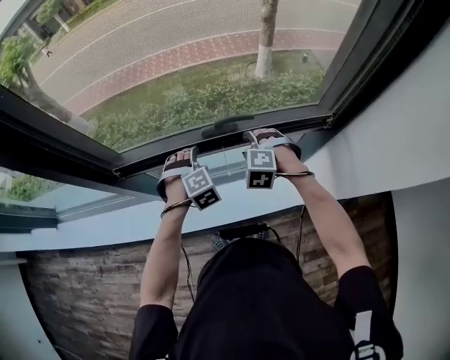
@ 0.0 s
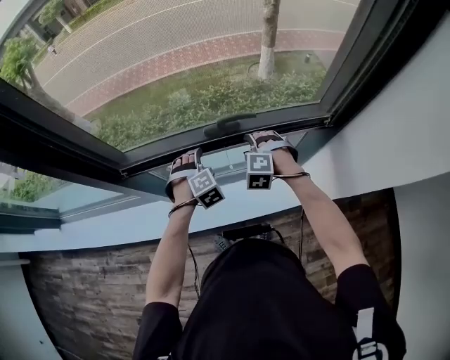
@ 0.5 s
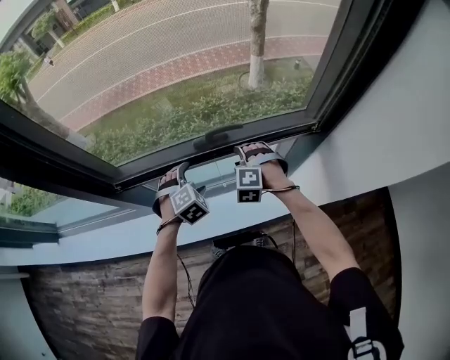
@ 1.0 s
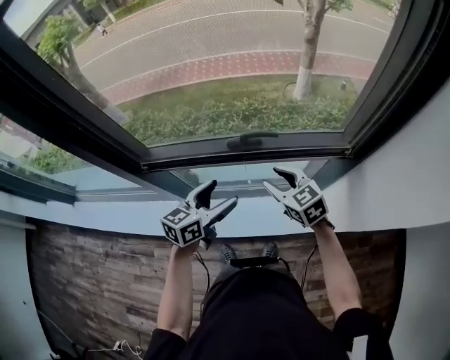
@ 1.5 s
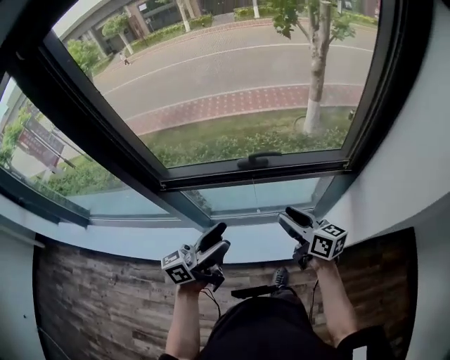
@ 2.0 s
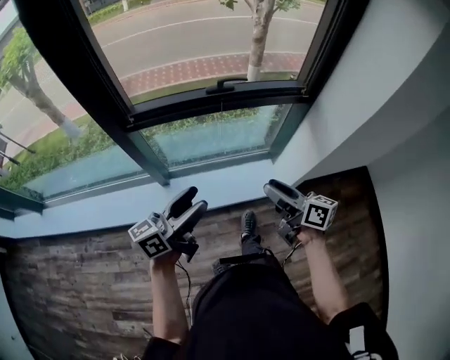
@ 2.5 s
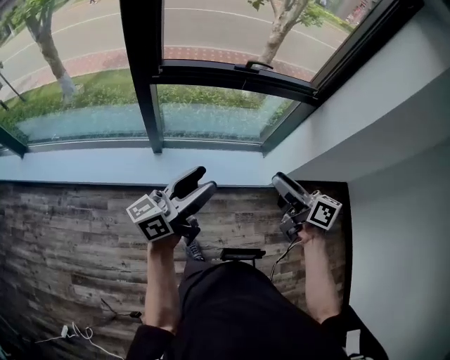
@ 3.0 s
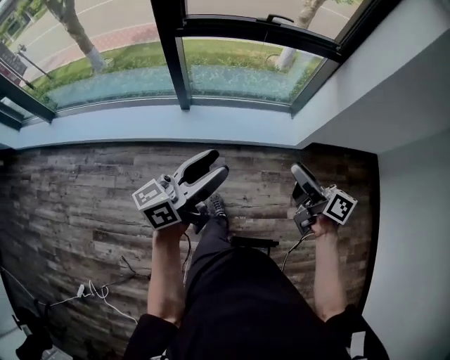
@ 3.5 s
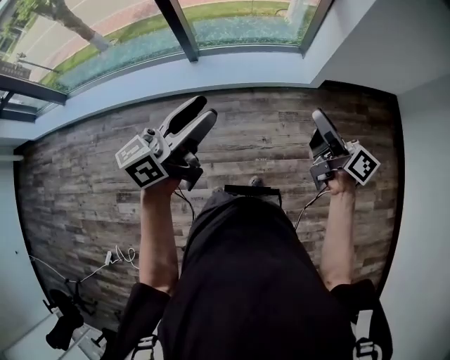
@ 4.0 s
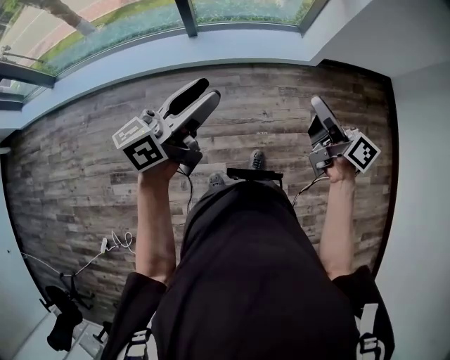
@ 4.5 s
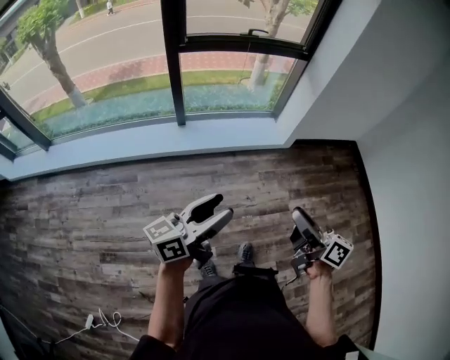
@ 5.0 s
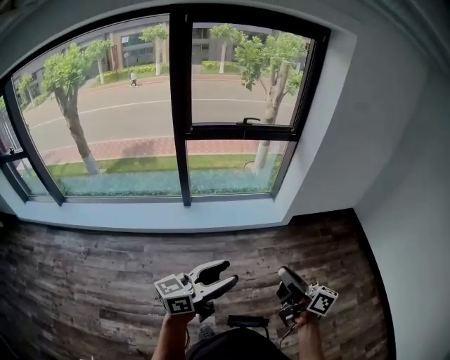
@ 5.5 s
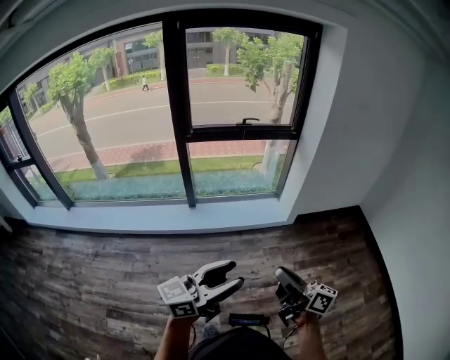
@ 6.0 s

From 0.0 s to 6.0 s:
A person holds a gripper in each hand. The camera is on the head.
From 0.0 s to 2.0 s: The right gripper moves backward and upward, roughly 15 cm, and rotates around the line of its fingers by some 80 degrees, clockwise from behind. Meanwhile the left gripper is displaced backward and upward by about 25 cm, and angles its fingers upward, by about 70 degrees.
From 2.0 s to 4.0 s: Both grippers are carried backward, some 50 cm. The right gripper changes its angle by some 20 degrees.
From 4.0 s to 6.0 s: Both grippers move backward, roughly 20 cm. The right gripper closes its fingers.

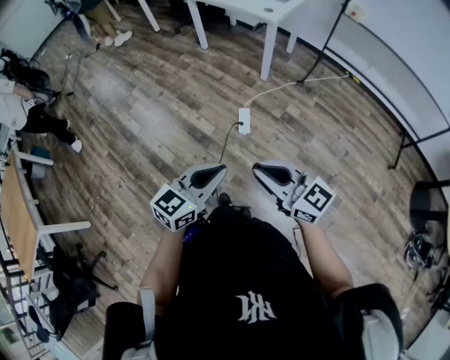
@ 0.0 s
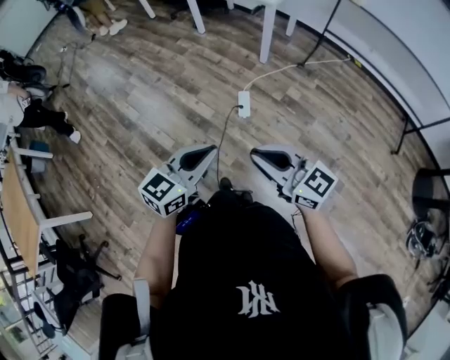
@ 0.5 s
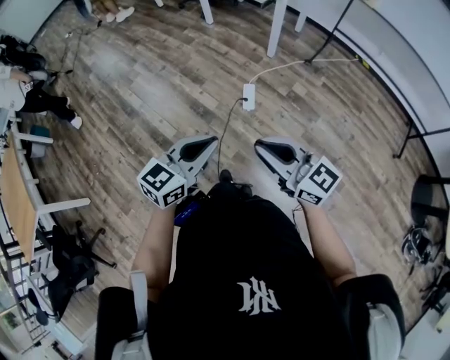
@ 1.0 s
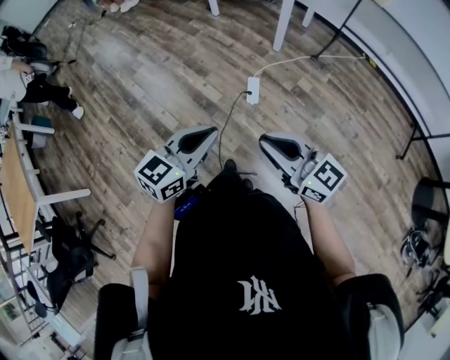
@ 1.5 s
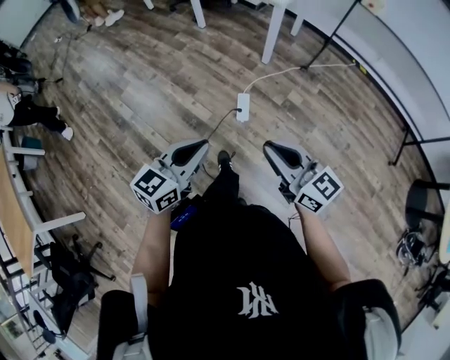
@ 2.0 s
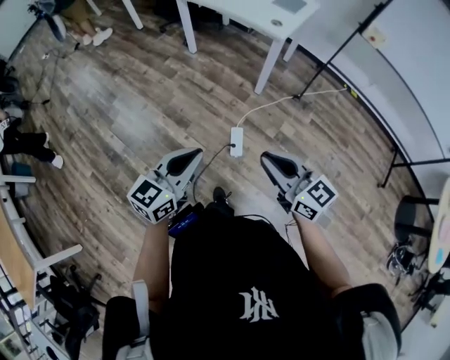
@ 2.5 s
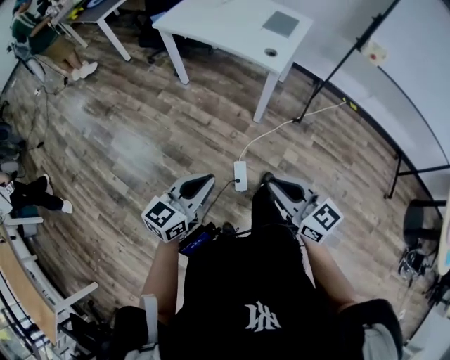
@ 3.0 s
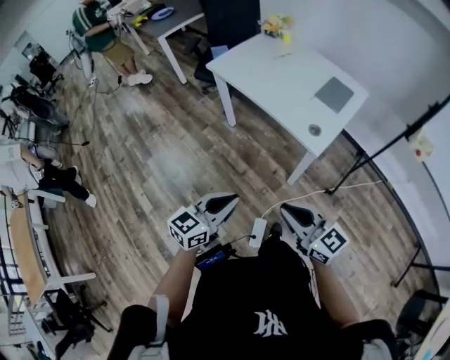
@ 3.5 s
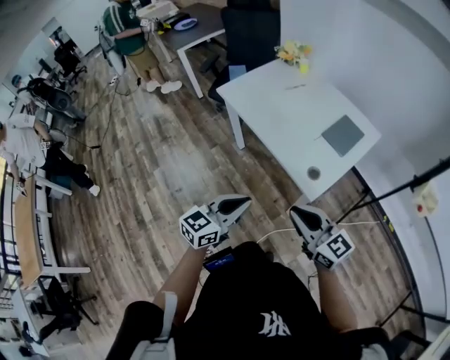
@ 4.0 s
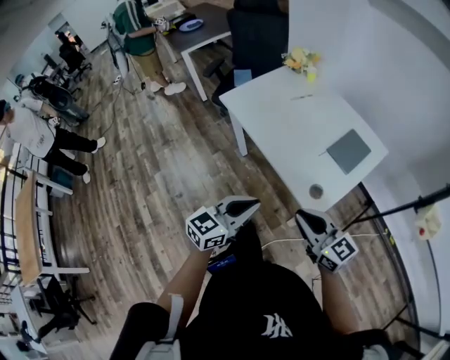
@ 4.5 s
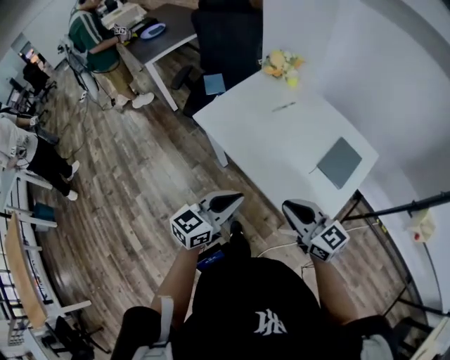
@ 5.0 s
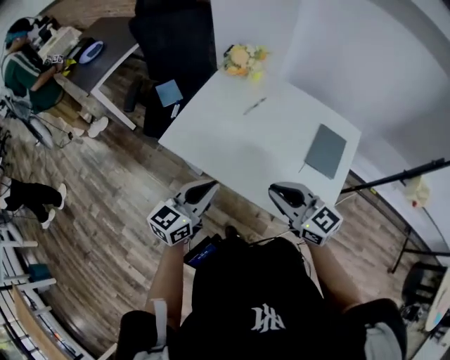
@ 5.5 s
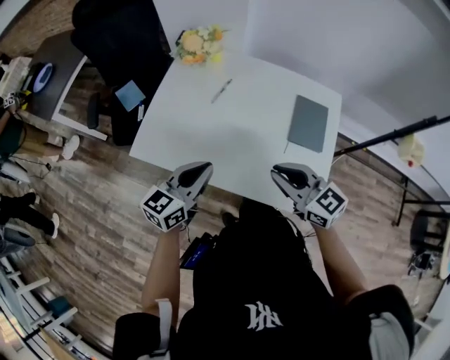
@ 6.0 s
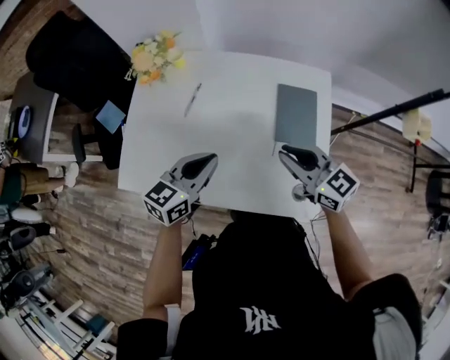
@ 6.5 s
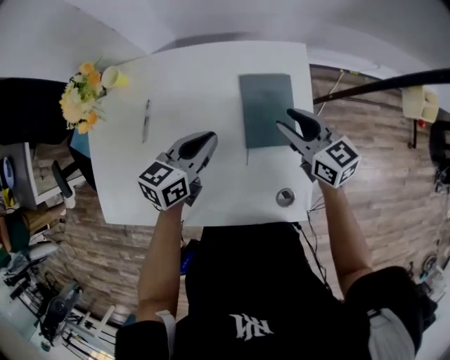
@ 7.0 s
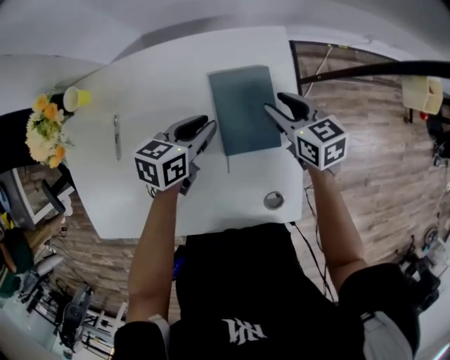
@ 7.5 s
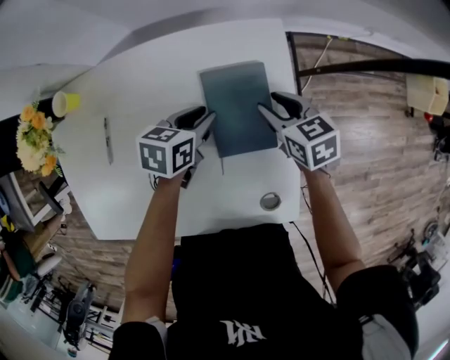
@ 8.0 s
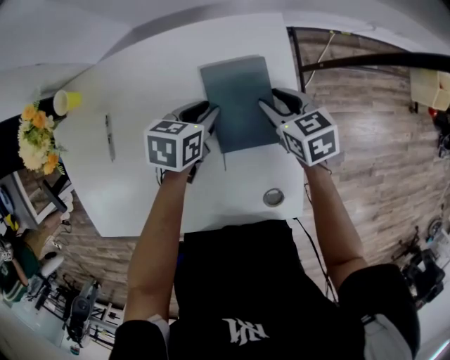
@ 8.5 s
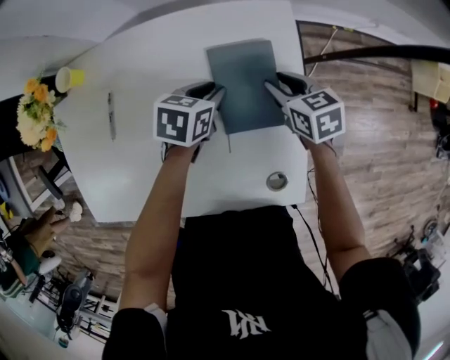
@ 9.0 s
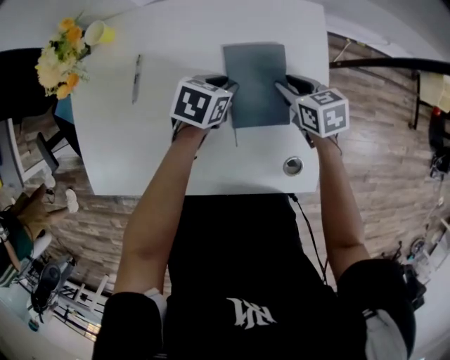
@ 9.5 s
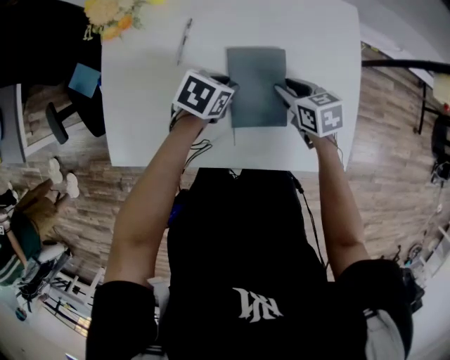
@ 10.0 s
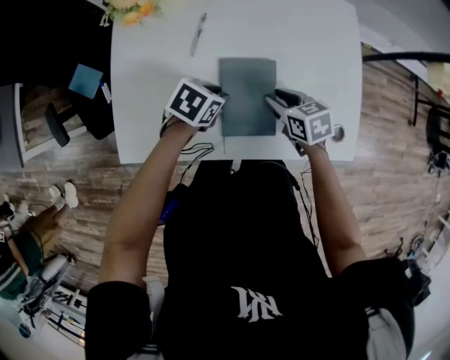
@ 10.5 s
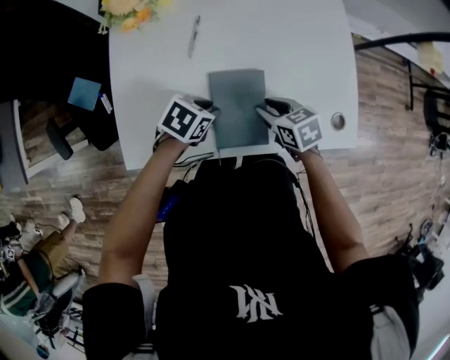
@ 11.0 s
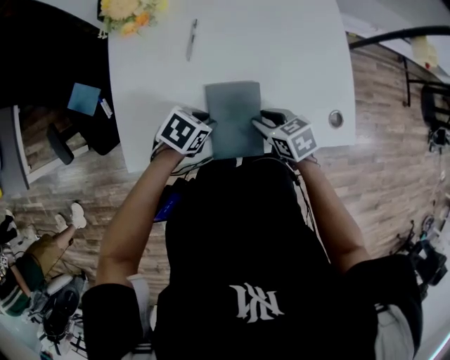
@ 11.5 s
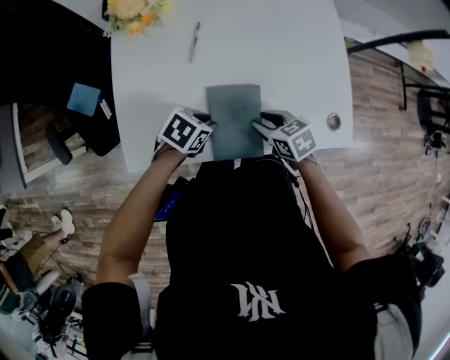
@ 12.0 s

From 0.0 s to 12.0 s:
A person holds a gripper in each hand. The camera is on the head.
From 0.0 s to 2.0 s: The two grippers go some 10 cm forward.
From 2.0 s to 4.0 s: The two grippers travel together, forward, approximately 70 cm.
From 4.0 s to 6.0 s: The right gripper changes place by some 35 cm, and rotates about 30 degrees; the left gripper moves approximately 40 cm, and changes its angle by approximately 20 degrees.
From 6.0 s to 8.0 s: The left gripper shifts by approximately 40 cm, tilts its fingers roughly 40 degrees downward, and opens. The right gripper moves roughly 40 cm, turns by about 50 degrees, and opens.
From 8.0 s to 10.0 s: The right gripper moves to the left and backward, roughly 20 cm, while the left gripper is displaced backward and to the left by about 20 cm.
From 10.0 s to 12.0 s: The left gripper changes place by about 15 cm; the right gripper shifts by about 20 cm.

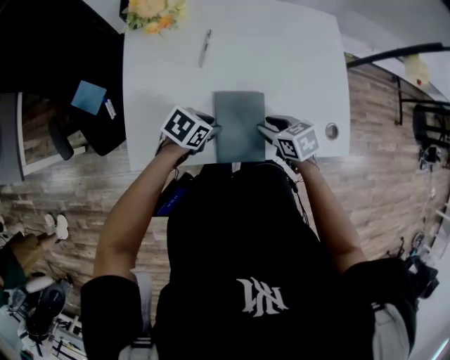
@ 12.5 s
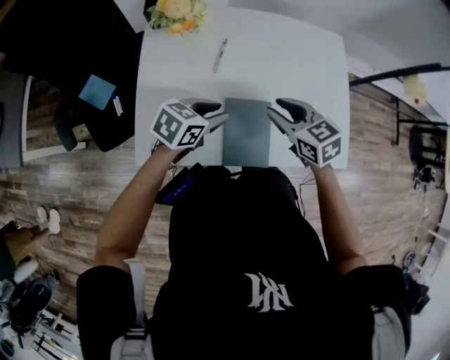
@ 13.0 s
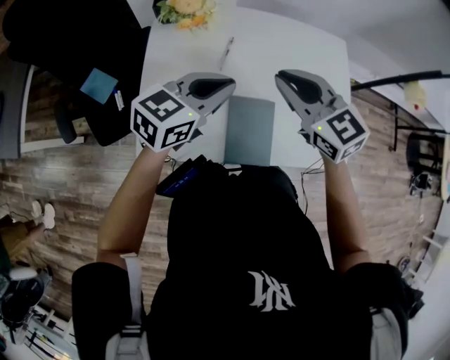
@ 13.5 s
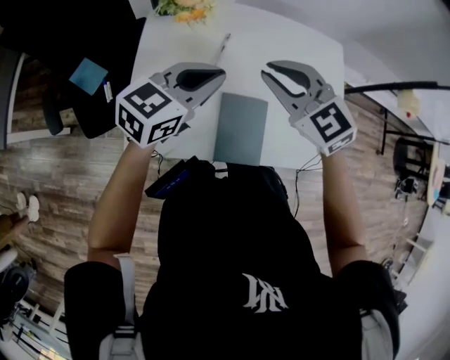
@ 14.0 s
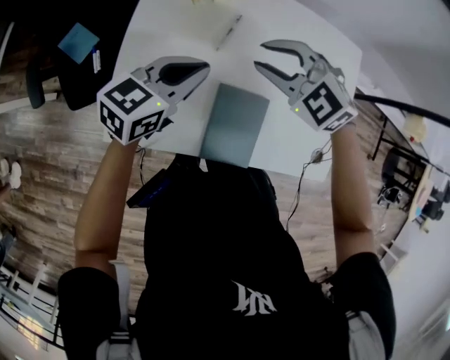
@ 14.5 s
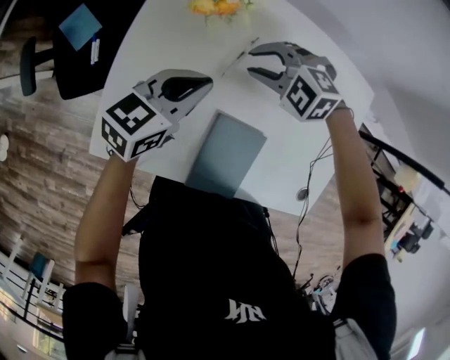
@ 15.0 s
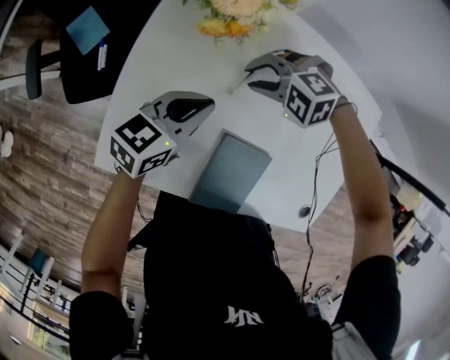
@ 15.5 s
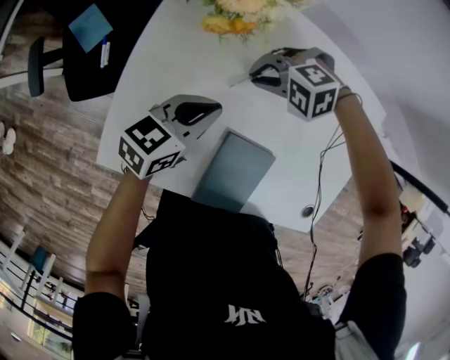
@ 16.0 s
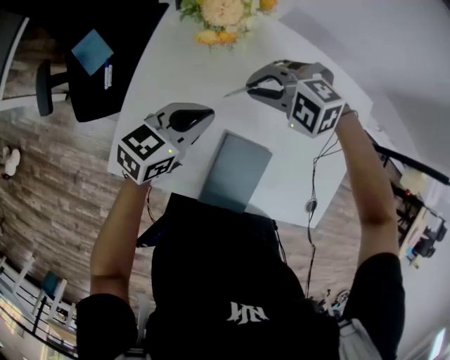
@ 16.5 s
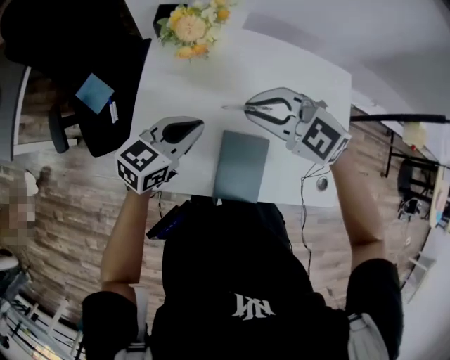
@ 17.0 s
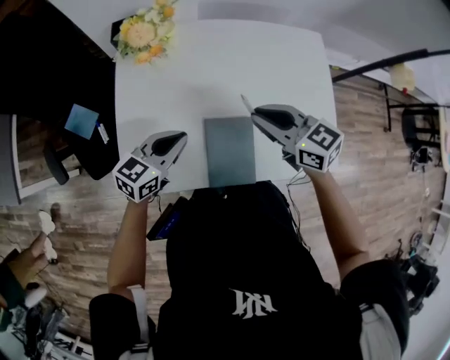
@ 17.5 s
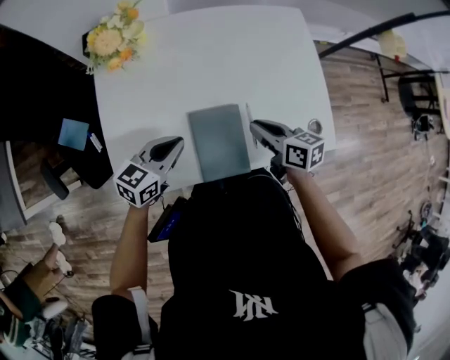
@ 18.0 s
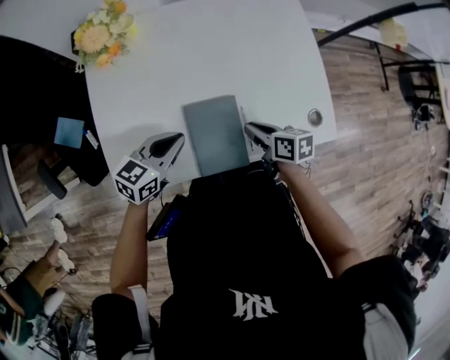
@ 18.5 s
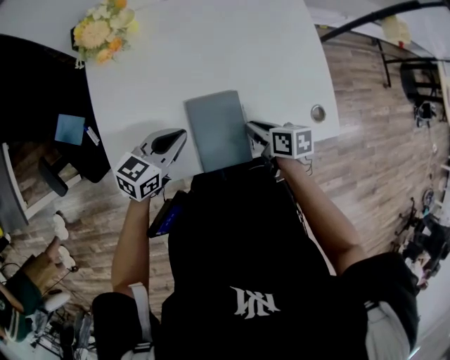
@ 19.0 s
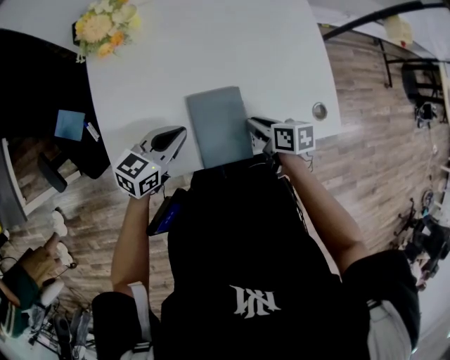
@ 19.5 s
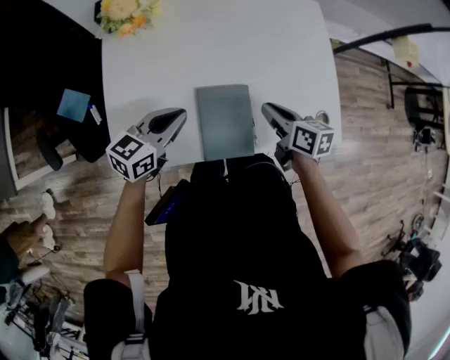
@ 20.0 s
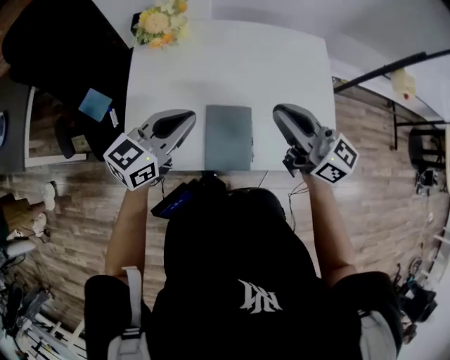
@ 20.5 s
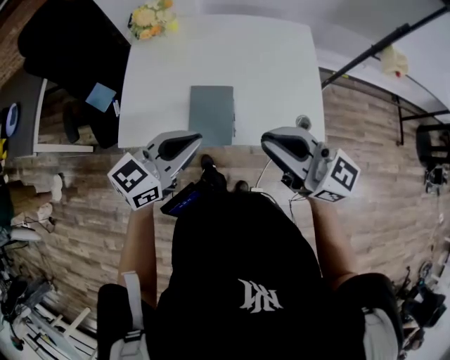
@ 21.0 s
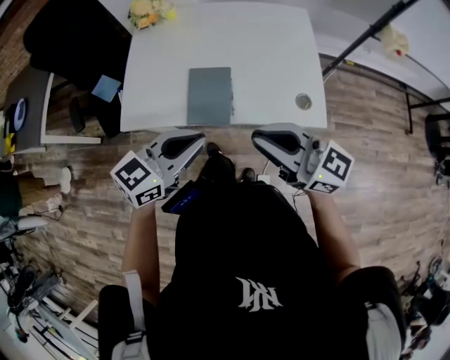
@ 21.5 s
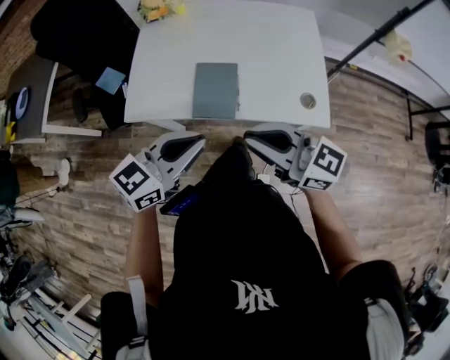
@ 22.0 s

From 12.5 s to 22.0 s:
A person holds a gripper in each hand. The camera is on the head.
From 12.5 s to 14.5 s: The left gripper goes some 15 cm upward, points its fingers roughly 30 degrees further upward, and closes up; the right gripper shifts by about 25 cm, and rolls counterclockwise, seen from behind, by approximately 70 degrees.
From 14.5 s to 16.5 s: The grippers both shift downward by approximately 5 cm. The right gripper turns by some 40 degrees.
From 16.5 s to 18.0 s: The right gripper goes upward and returns, approximately 10 cm each way, and twists roughly 110 degrees clockwise, seen from behind. The left gripper travels upward and back again, approximately 5 cm each way.
From 20.0 s to 22.0 s: The left gripper shifts about 30 cm backward, upward and to the right. Meanwhile the right gripper is displaced upward and backward by approximately 35 cm, and tilts its fingers about 40 degrees upward.
